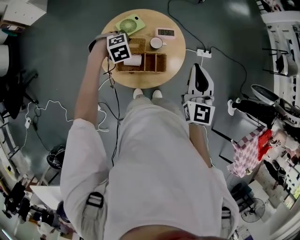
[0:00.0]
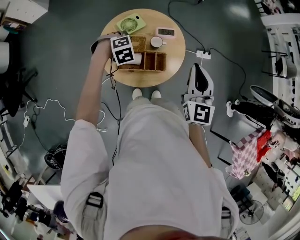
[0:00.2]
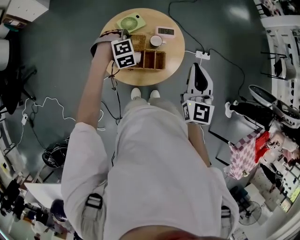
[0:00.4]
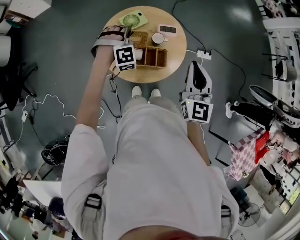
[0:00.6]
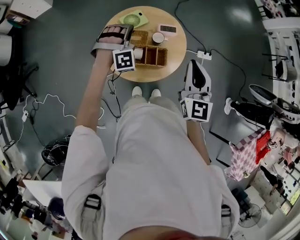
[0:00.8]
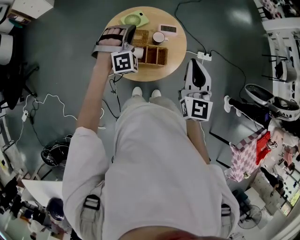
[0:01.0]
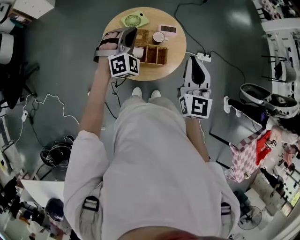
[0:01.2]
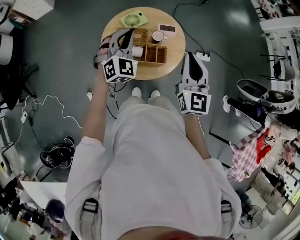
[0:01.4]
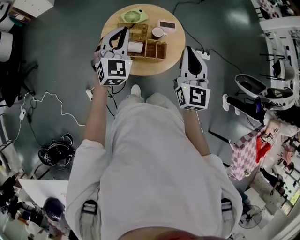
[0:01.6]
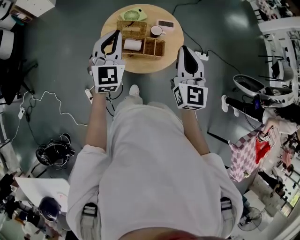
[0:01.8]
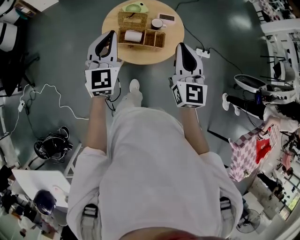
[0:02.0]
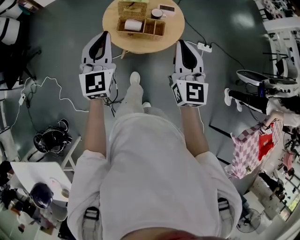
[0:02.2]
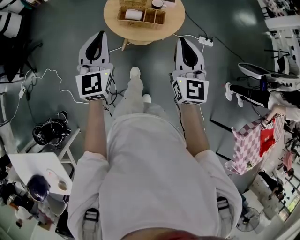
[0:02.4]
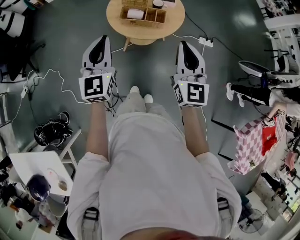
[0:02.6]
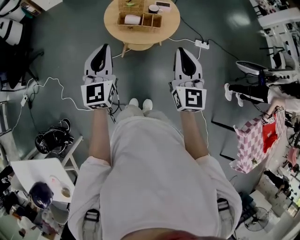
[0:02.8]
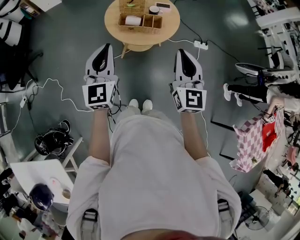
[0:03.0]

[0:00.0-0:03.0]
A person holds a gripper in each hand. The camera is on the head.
0:00.0 to 0:01.6: The left gripper heads upward and backward, covering approximately 20 cm, and tilts its fingers roughly 60 degrees upward, while the right gripper shifts approximately 5 cm backward.
0:01.6 to 0:03.0: Both grippers move backward, some 30 cm. The left gripper changes its angle by roughly 20 degrees.

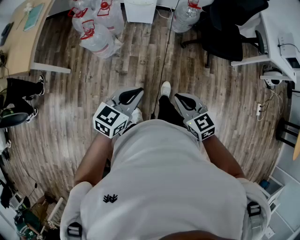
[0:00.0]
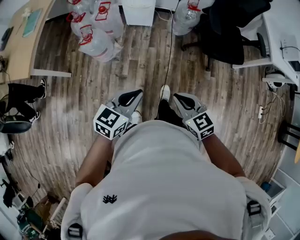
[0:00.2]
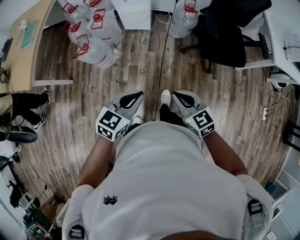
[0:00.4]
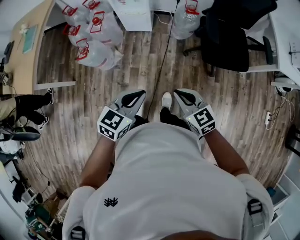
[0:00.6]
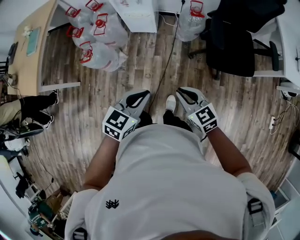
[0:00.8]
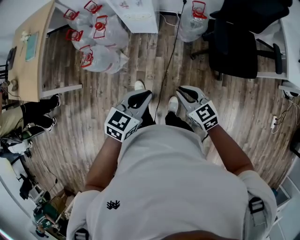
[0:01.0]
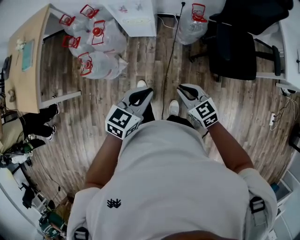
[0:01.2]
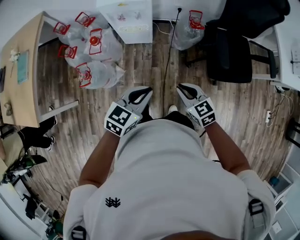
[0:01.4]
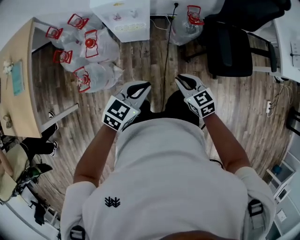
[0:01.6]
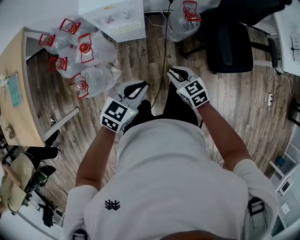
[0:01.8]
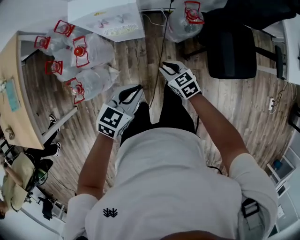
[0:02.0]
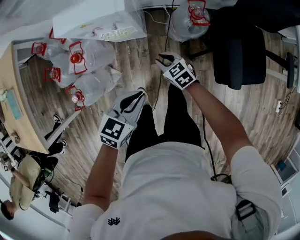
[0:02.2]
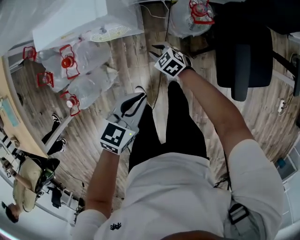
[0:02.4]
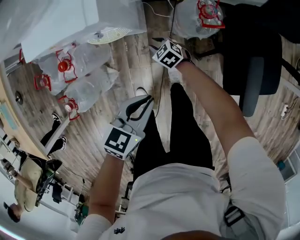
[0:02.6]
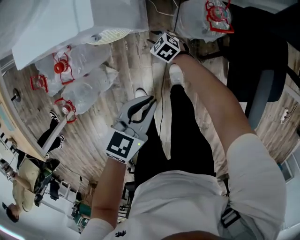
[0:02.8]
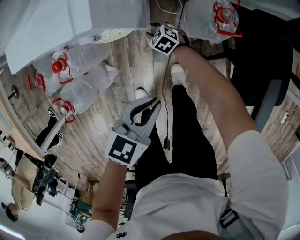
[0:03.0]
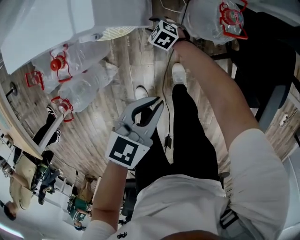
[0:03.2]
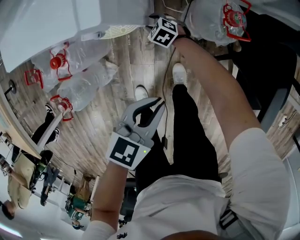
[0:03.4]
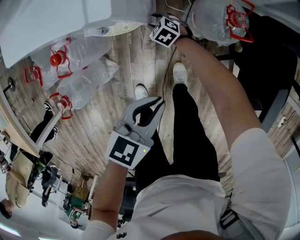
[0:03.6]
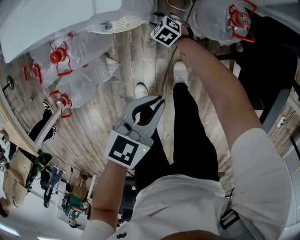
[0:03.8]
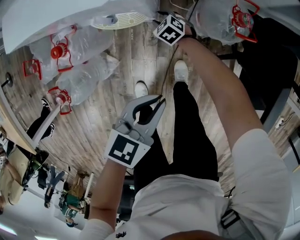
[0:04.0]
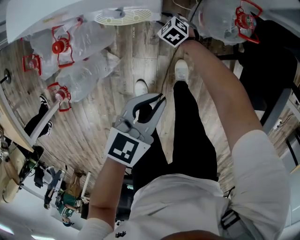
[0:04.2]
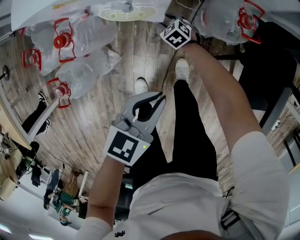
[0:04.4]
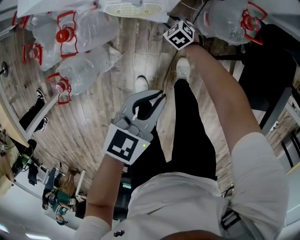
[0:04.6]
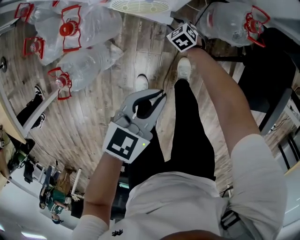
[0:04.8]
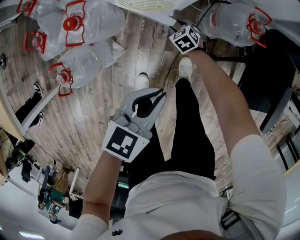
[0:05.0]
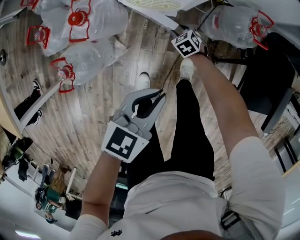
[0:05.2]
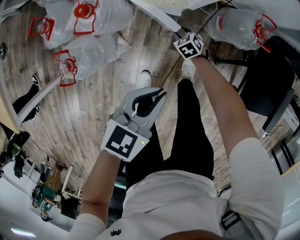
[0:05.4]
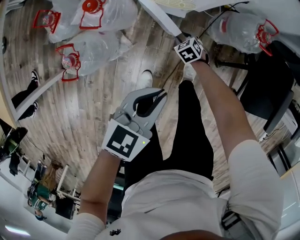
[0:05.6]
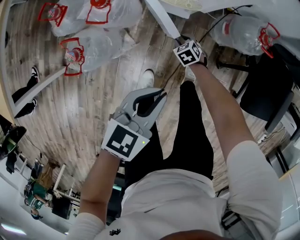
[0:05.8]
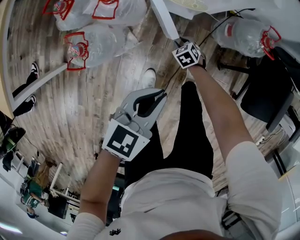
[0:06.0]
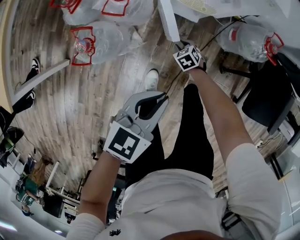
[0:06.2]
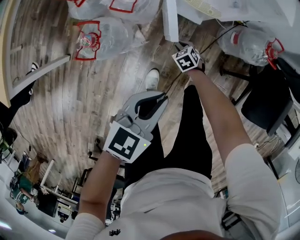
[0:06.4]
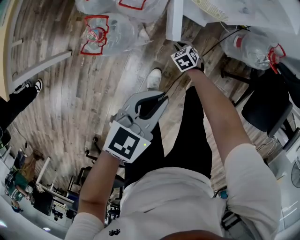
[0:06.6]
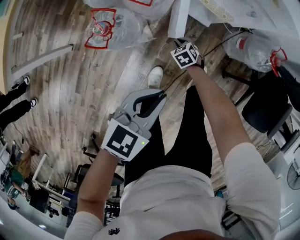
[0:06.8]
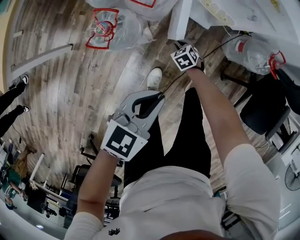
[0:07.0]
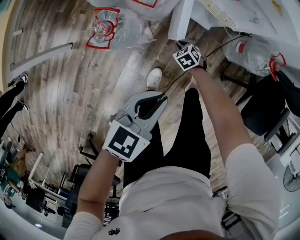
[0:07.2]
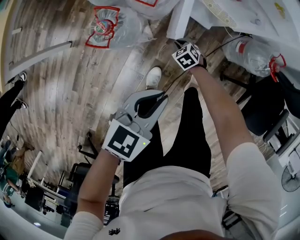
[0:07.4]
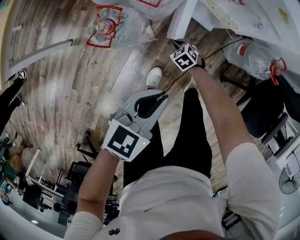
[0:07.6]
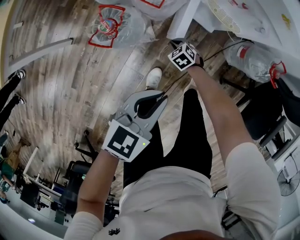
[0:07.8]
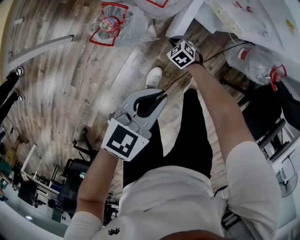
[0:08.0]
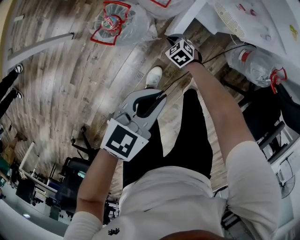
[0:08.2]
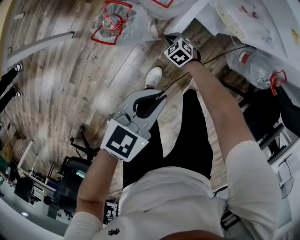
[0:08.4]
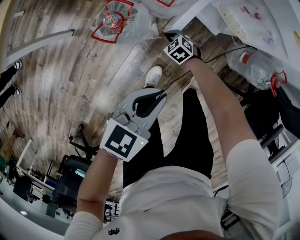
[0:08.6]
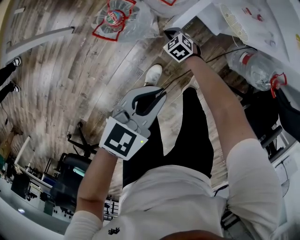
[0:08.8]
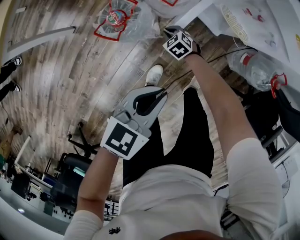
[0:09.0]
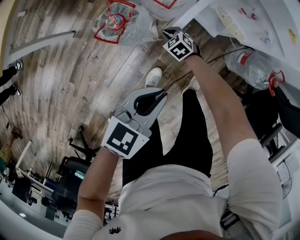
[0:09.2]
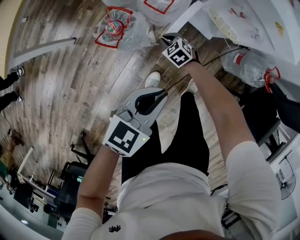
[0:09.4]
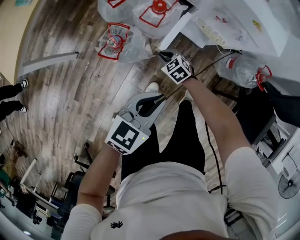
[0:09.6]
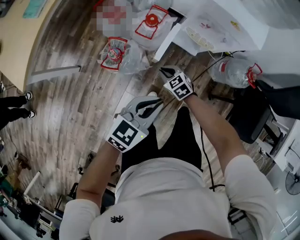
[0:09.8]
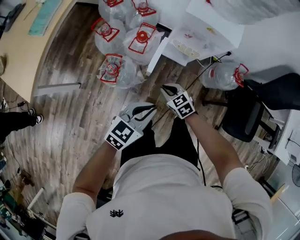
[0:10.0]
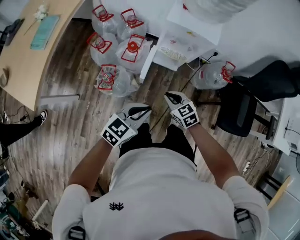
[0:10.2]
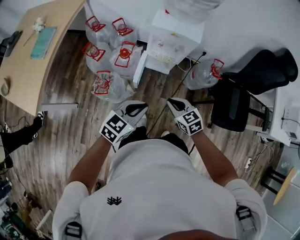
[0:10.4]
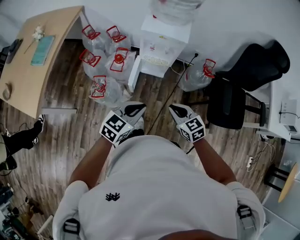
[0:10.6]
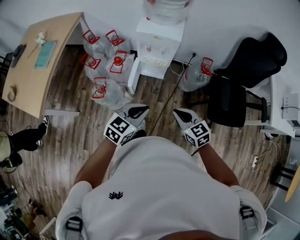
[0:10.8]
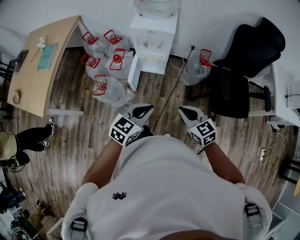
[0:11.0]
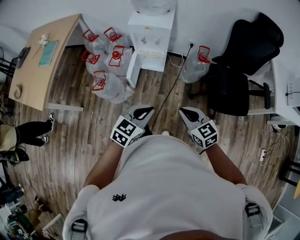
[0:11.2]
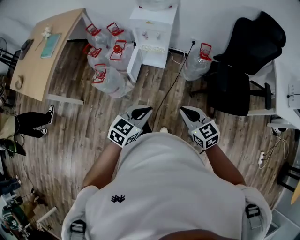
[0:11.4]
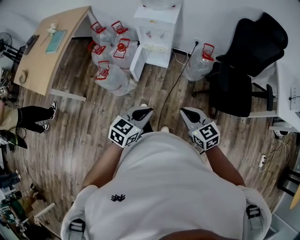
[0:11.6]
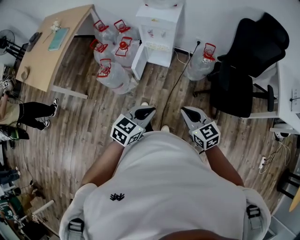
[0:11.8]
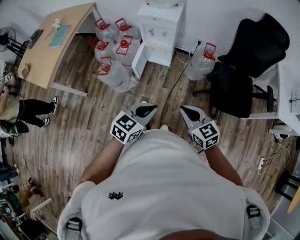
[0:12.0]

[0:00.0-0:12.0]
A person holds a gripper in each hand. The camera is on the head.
0:00.0 to 0:01.6: Both grippers are carried forward, some 40 cm.
0:01.6 to 0:03.0: The right gripper travels downward and forward by approximately 60 cm, swivels approximately 30 degrees, and opens up; the left gripper moves forward, downward and to the right, some 30 cm.
0:03.0 to 0:04.4: The left gripper heads to the left, covering approximately 5 cm.
0:04.4 to 0:06.0: The right gripper goes roughly 20 cm backward and to the left; the left gripper heads to the left and backward, covering some 20 cm.
0:06.0 to 0:07.6: Both grippers move to the left, roughly 15 cm. The right gripper turns by roughly 20 degrees.
0:07.6 to 0:09.0: The right gripper heads to the left, covering roughly 10 cm.
0:09.0 to 0:10.4: The left gripper shifts approximately 20 cm upward, and rotates about 30 degrees, while the right gripper travels upward by roughly 50 cm, and turns by approximately 40 degrees.
0:10.4 to 0:12.0: The left gripper travels backward and to the right by some 30 cm. The right gripper goes some 35 cm backward, to the right and upward.

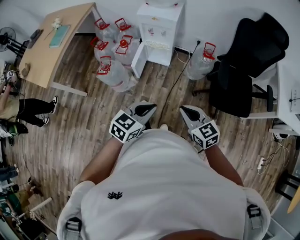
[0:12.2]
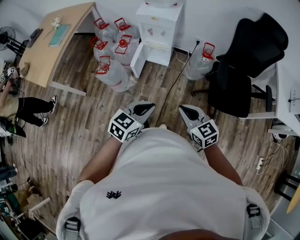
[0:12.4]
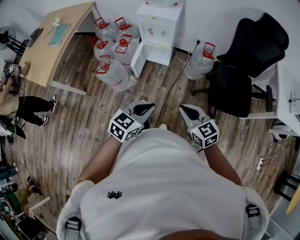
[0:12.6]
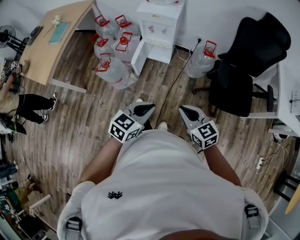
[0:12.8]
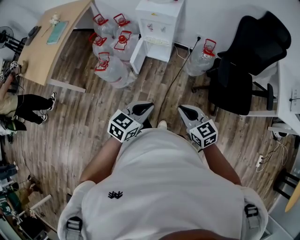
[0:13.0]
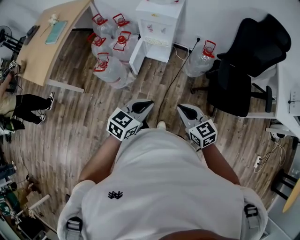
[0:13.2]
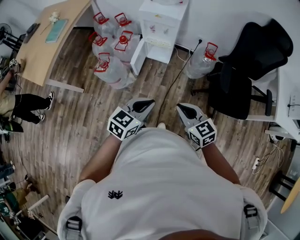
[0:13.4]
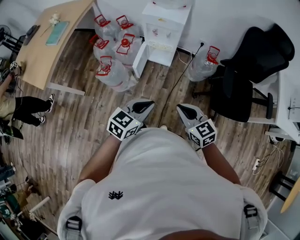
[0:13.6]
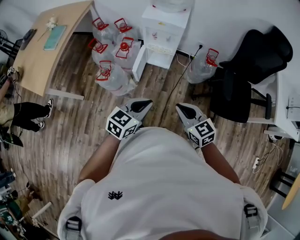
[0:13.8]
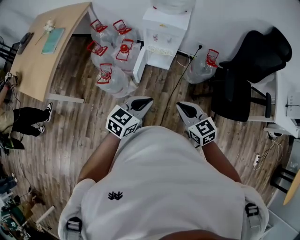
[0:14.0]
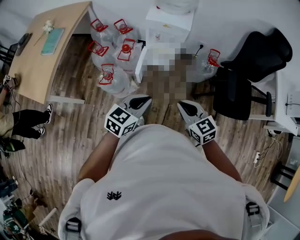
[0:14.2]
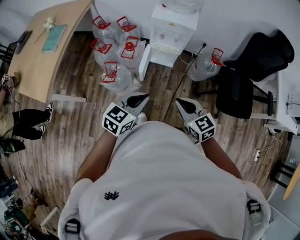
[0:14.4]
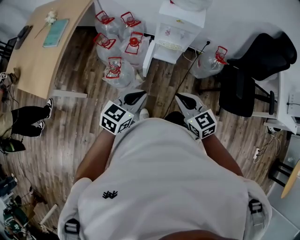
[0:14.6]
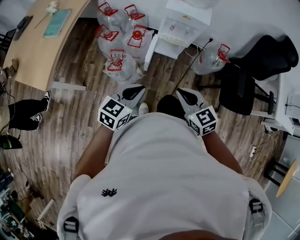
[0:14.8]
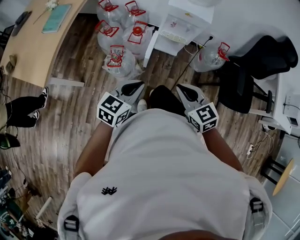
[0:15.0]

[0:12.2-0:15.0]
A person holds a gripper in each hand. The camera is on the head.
0:12.2 to 0:13.6: The right gripper heads to the left and forward, covering some 10 cm, while the left gripper shifts roughly 10 cm forward and to the left.
0:13.6 to 0:15.0: Both grippers travel together to the left, about 25 cm.

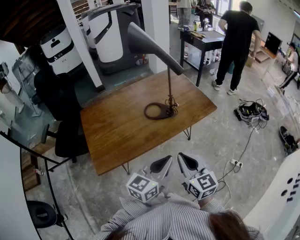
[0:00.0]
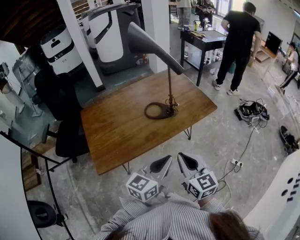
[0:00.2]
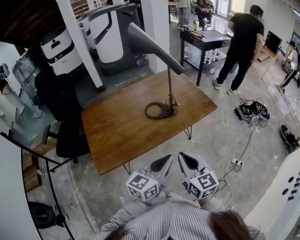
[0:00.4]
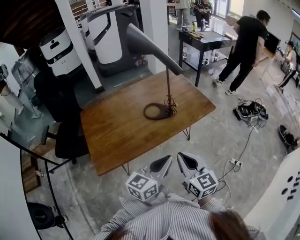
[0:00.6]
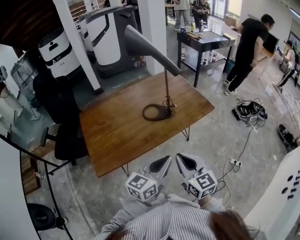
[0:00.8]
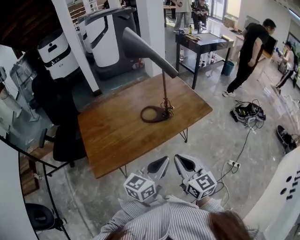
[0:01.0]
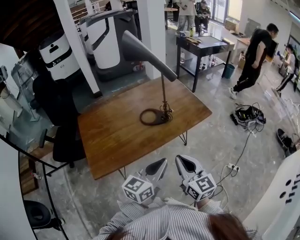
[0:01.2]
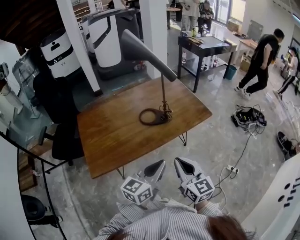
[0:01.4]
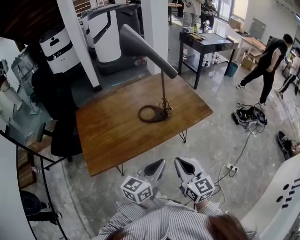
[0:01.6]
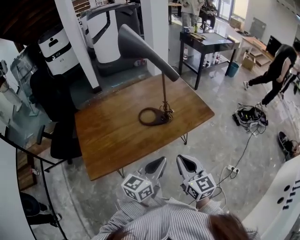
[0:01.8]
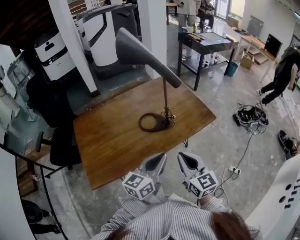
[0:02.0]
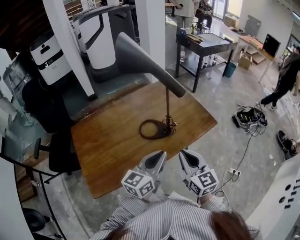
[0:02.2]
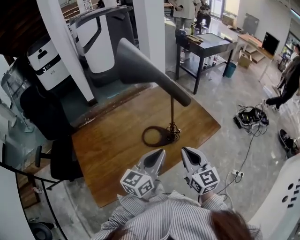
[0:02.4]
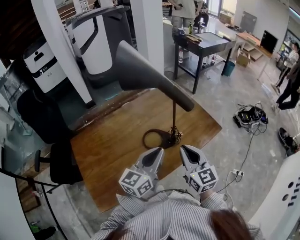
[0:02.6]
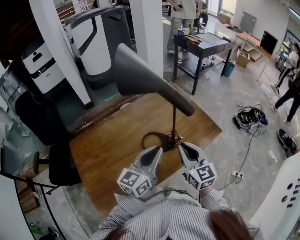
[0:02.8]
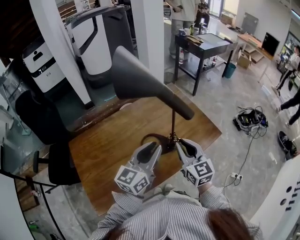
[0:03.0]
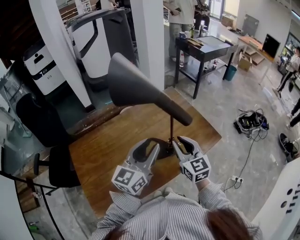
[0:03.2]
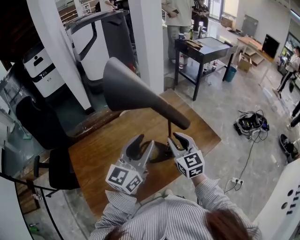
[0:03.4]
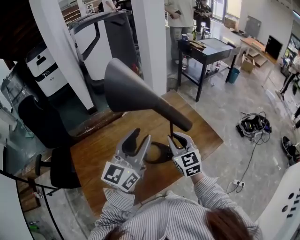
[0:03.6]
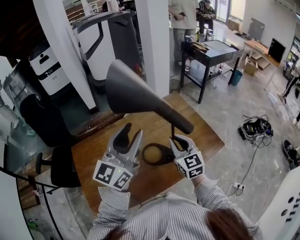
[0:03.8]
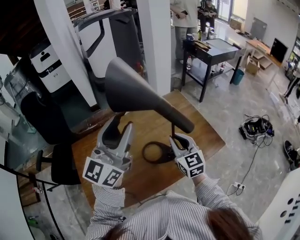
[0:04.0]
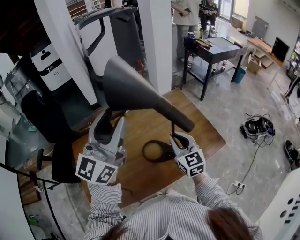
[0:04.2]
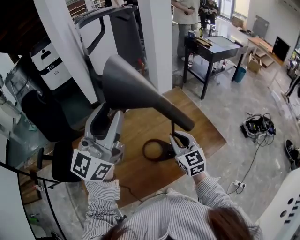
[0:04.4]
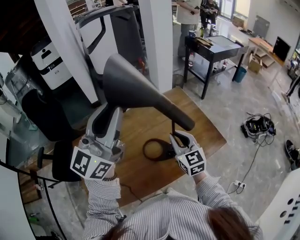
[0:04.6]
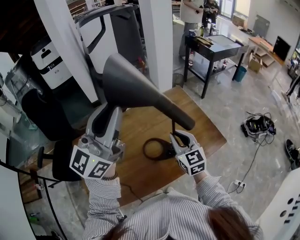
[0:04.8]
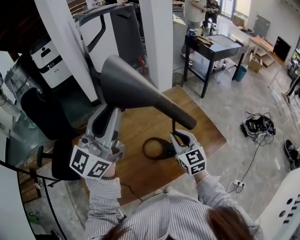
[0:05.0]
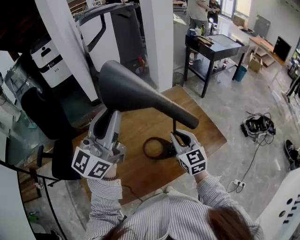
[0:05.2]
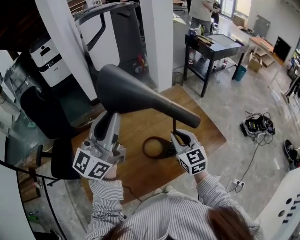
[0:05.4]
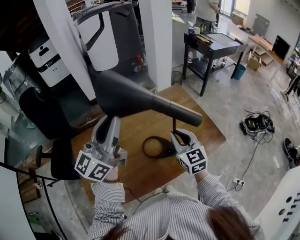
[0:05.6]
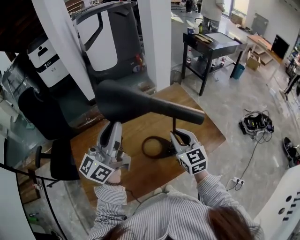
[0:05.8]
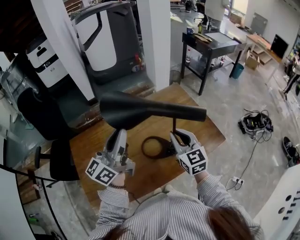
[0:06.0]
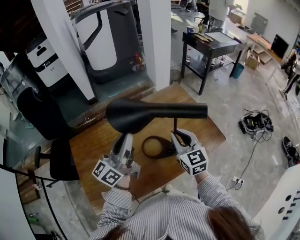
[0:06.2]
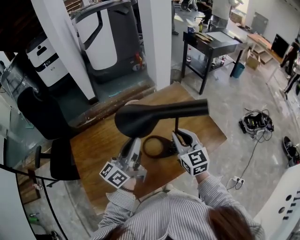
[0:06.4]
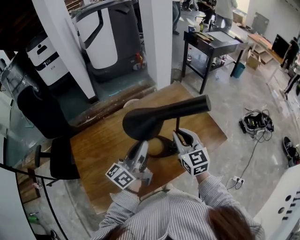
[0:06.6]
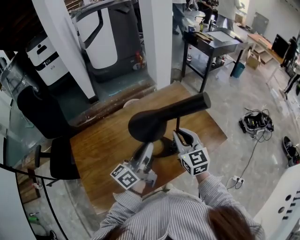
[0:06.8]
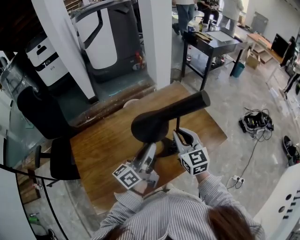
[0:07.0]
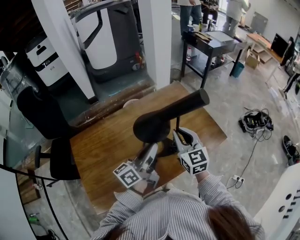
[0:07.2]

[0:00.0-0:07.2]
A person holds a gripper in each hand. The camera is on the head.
0:00.0 to 0:01.4: The grippers stay close to where they were, moving slightly.
0:01.4 to 0:02.8: Both grippers move forward, roughly 25 cm.
0:02.8 to 0:04.4: The left gripper moves upward and to the left, some 25 cm, rotates some 40 degrees, and opens up; the right gripper travels forward by about 10 cm.
0:04.4 to 0:05.8: The left gripper is displaced downward by roughly 10 cm, swivels approximately 20 degrees, and closes its fingers.
0:05.8 to 0:07.2: The left gripper shifts roughly 20 cm downward and to the right, and changes its angle by some 40 degrees.
